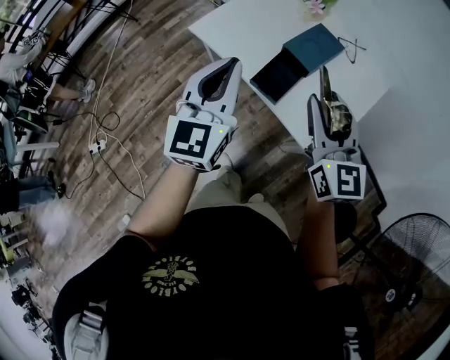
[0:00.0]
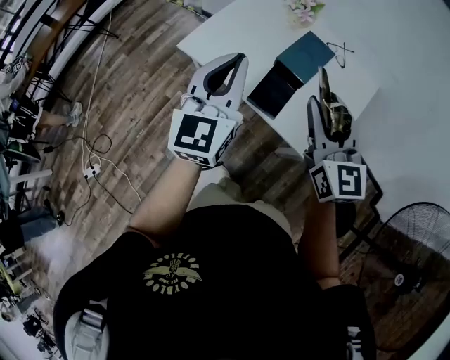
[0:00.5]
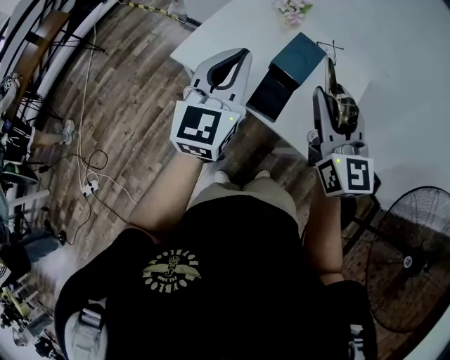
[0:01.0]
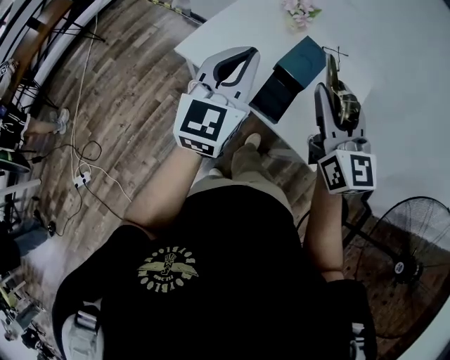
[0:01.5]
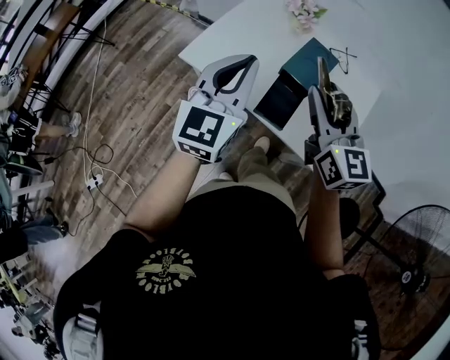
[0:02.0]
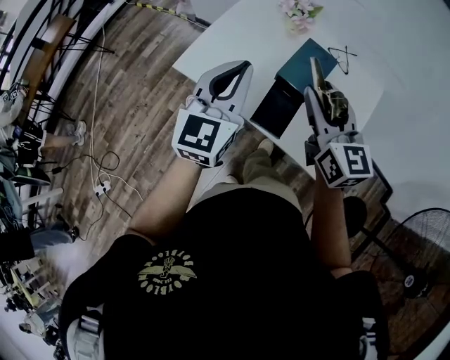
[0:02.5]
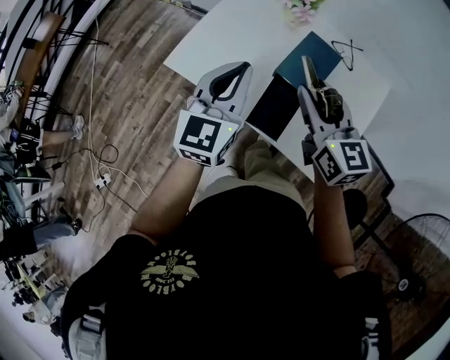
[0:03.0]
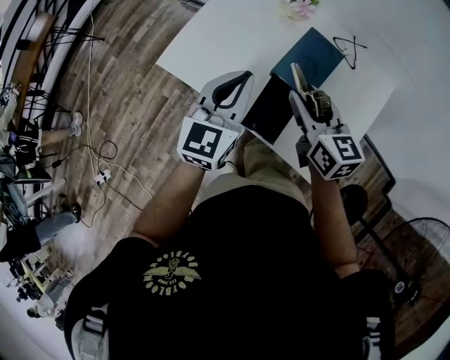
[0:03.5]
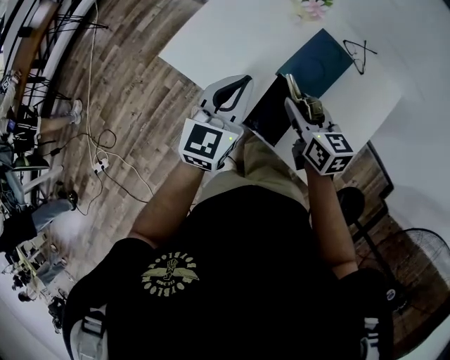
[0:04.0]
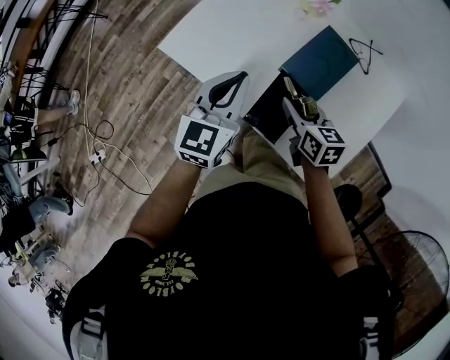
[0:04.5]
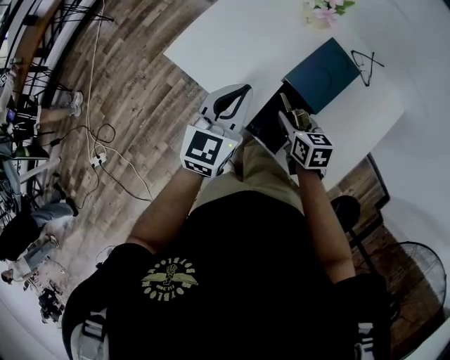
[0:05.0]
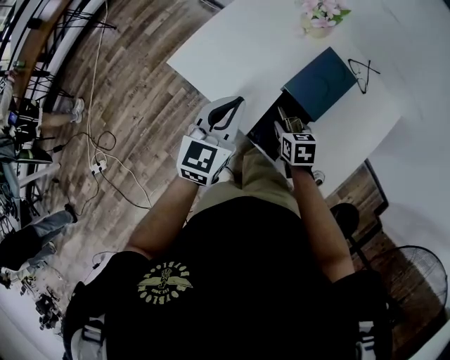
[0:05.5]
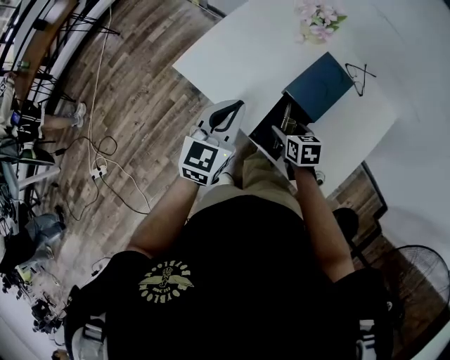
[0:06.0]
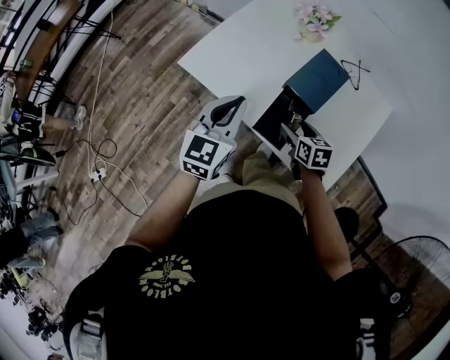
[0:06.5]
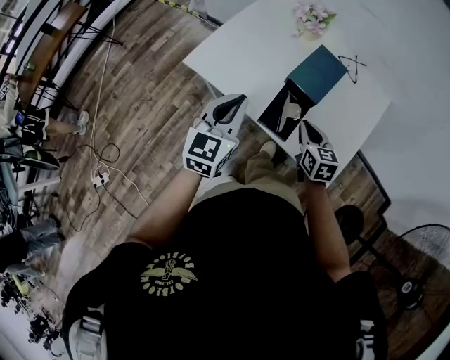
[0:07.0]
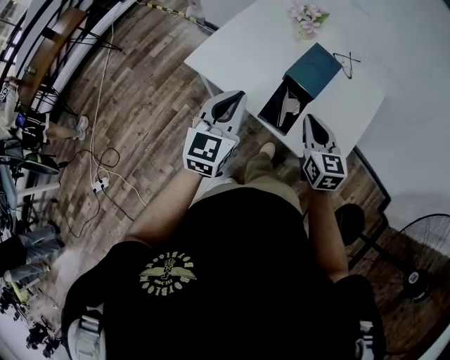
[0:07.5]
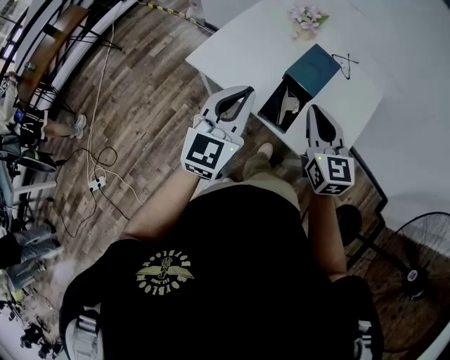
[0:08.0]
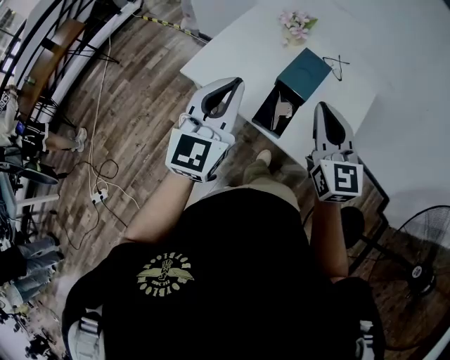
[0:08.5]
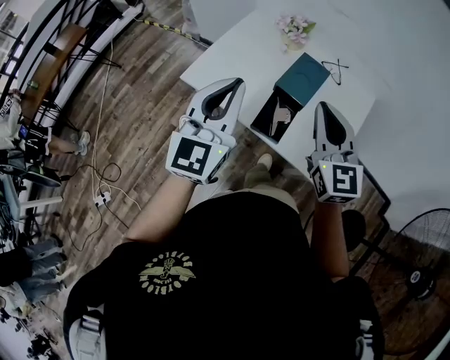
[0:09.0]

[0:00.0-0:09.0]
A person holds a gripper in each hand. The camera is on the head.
0:00.0 to 0:02.0: The left gripper goes roughly 10 cm forward. The right gripper is displaced forward and to the left by approximately 15 cm.
0:02.0 to 0:04.5: Both grippers move downward and forward, some 25 cm. The right gripper tips its fingers downward by roughly 30 degrees.
0:04.5 to 0:07.0: The left gripper is displaced backward and to the left by approximately 10 cm; the right gripper moves backward, approximately 10 cm, moves some 10 cm downward and comes back, and closes its fingers.
0:07.0 to 0:09.0: The right gripper moves upward, approximately 25 cm, and tips its fingers upward by roughly 30 degrees. Meanwhile the left gripper heads upward, covering roughly 15 cm, and turns by about 20 degrees.

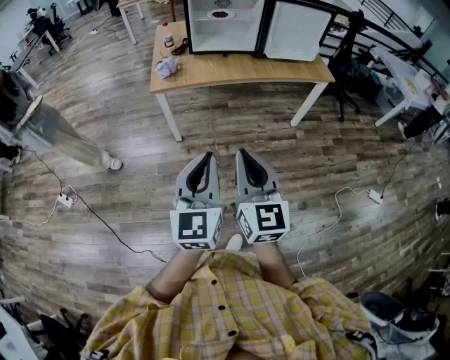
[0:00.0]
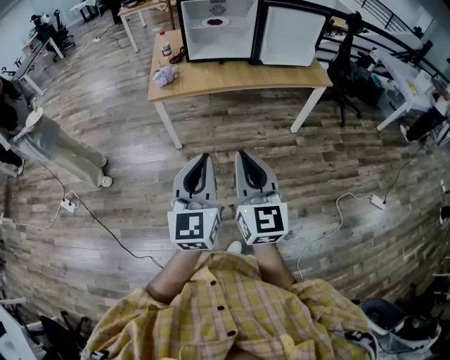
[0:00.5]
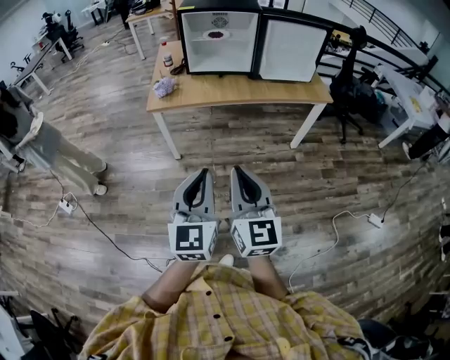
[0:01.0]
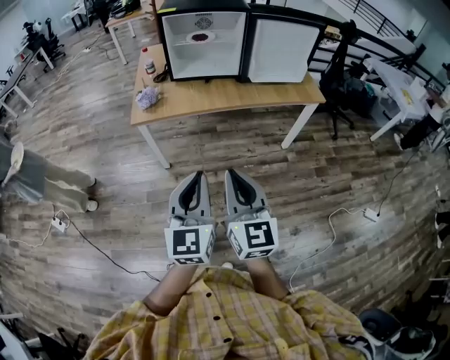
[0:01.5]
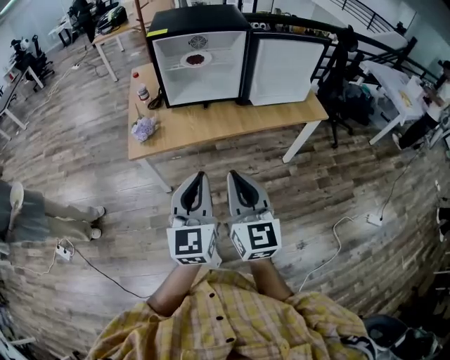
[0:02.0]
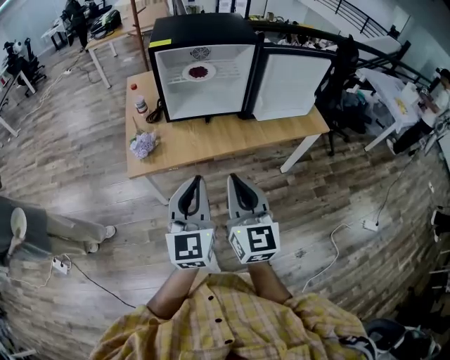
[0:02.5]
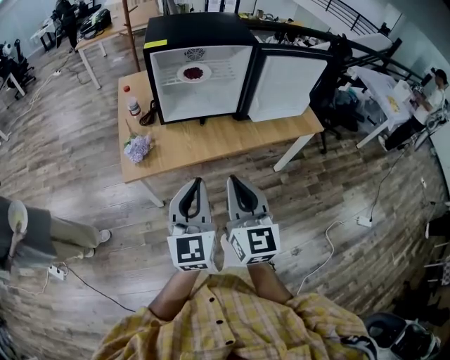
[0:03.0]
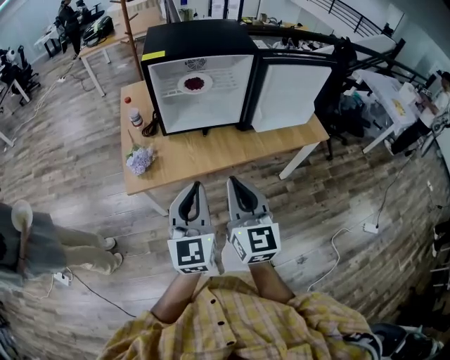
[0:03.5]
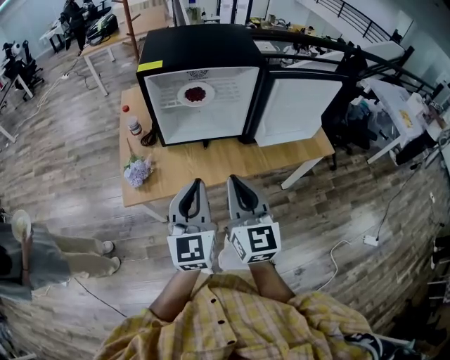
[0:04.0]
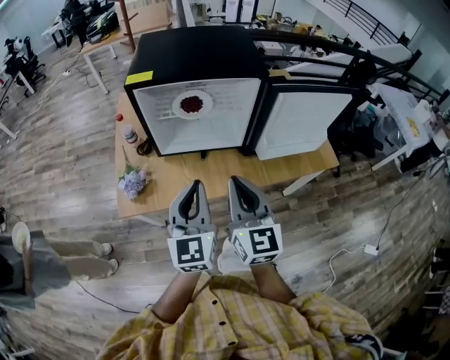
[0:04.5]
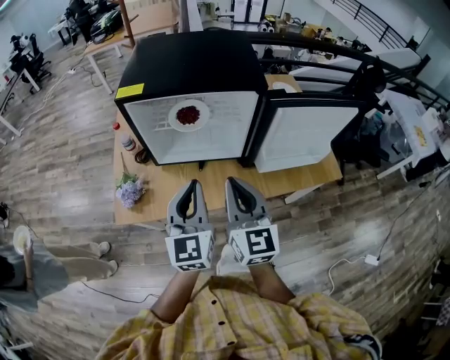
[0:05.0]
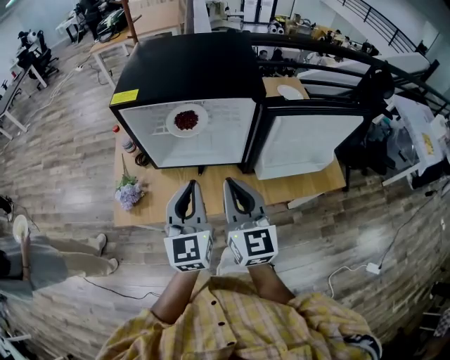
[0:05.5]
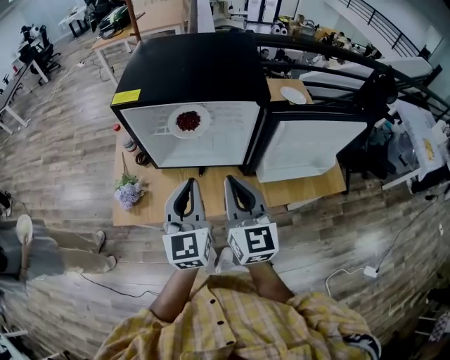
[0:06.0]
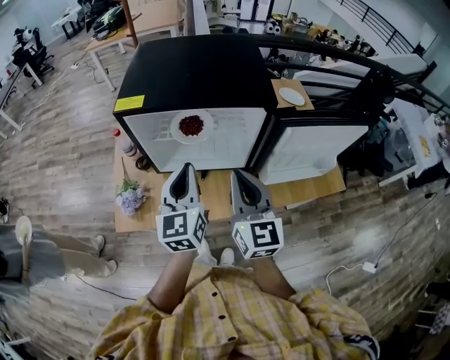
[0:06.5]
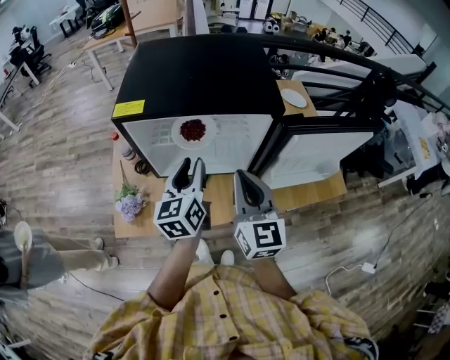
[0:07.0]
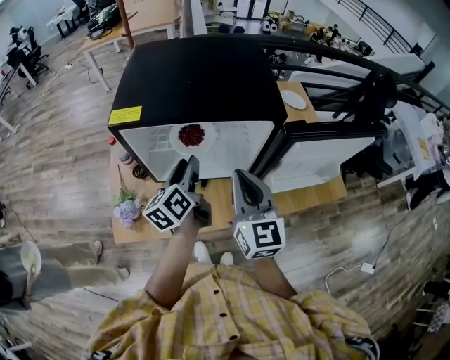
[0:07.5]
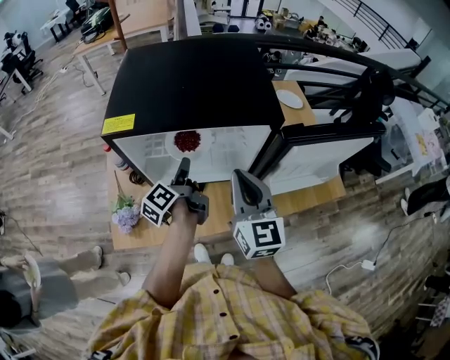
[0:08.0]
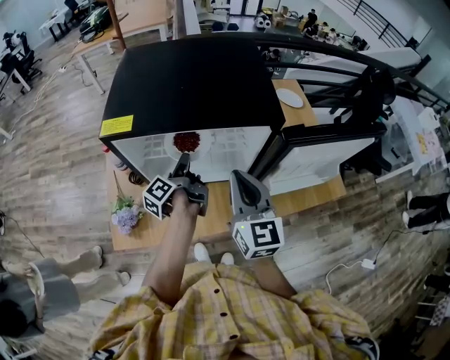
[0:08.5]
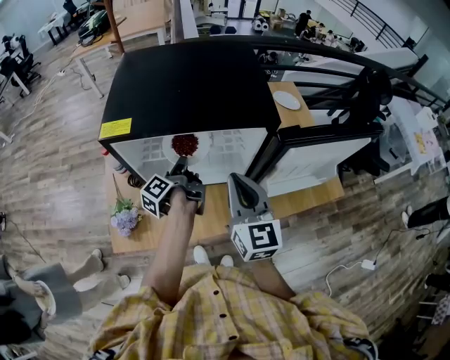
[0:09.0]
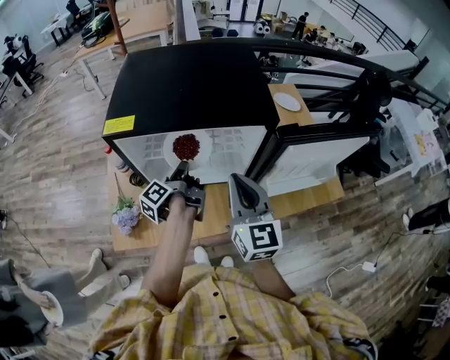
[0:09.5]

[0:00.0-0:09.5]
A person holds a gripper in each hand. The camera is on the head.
0:00.0 to 0:02.0: Both grippers travel together forward, some 25 cm.
0:02.0 to 0:04.0: The grippers both shift forward by roughly 20 cm.
0:04.0 to 0:05.5: Both grippers move forward and to the right, some 15 cm.
0:05.5 to 0:07.5: The right gripper heads forward, covering about 10 cm. The left gripper moves forward and downward, approximately 20 cm, twists approximately 50 degrees counterclockwise, seen from behind, and opens.
0:07.5 to 0:09.5: The left gripper shifts roughly 5 cm downward, rolls counterclockwise, seen from behind, by roughly 40 degrees, and closes up.

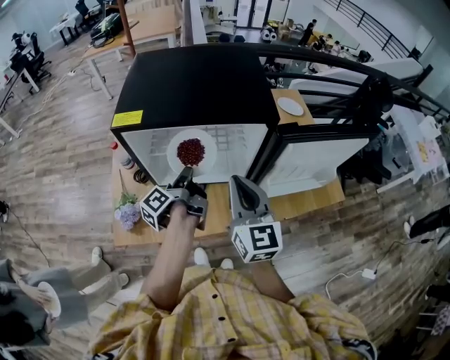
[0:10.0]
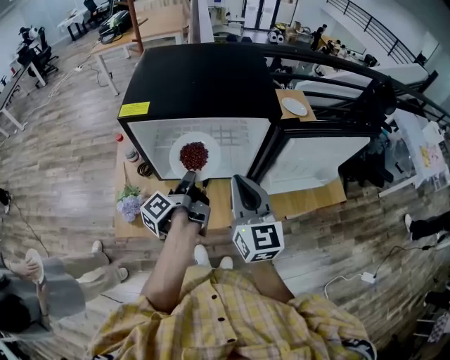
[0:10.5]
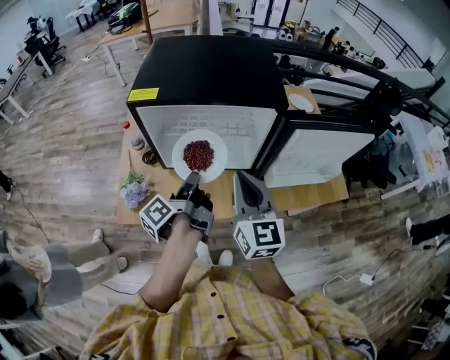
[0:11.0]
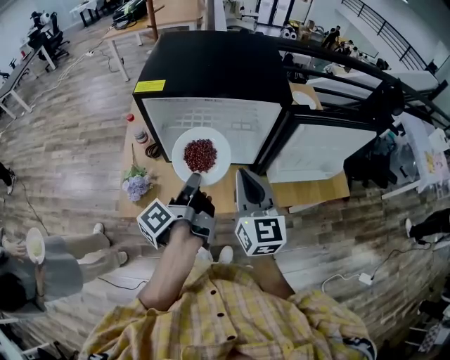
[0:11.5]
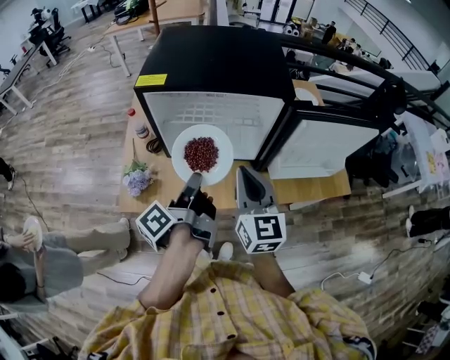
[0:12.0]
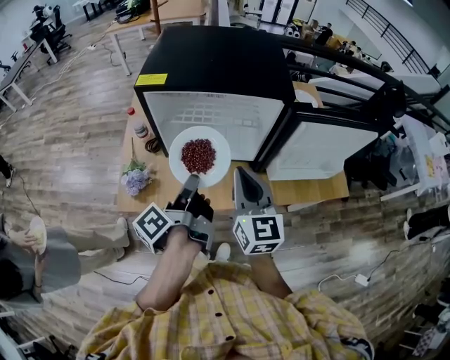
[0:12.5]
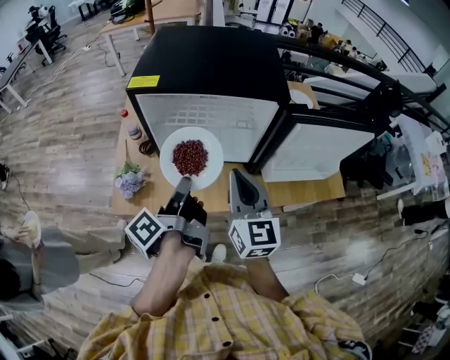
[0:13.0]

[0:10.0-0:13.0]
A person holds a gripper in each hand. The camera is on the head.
0:10.0 to 0:11.5: The left gripper shifts roughly 15 cm backward and upward, while the right gripper moves backward, some 5 cm.
0:11.5 to 0:13.0: The grippers move only a little.

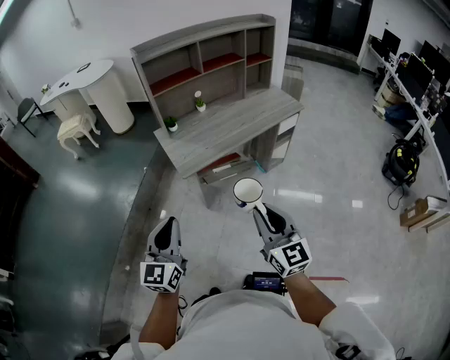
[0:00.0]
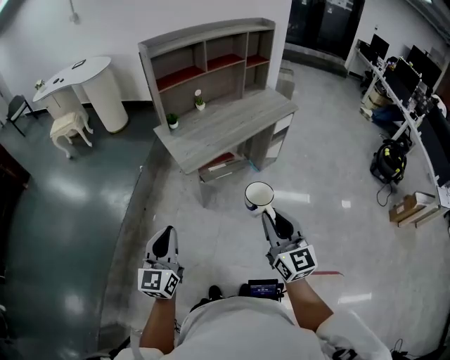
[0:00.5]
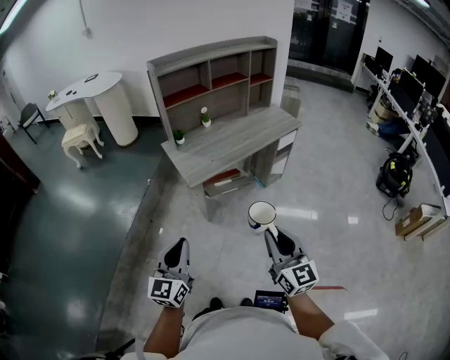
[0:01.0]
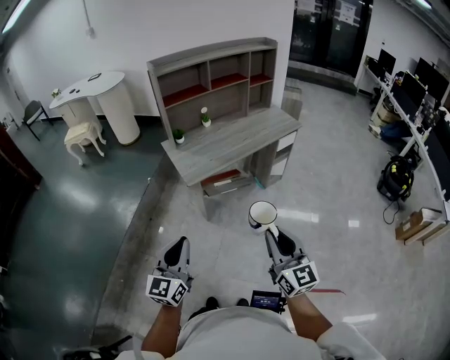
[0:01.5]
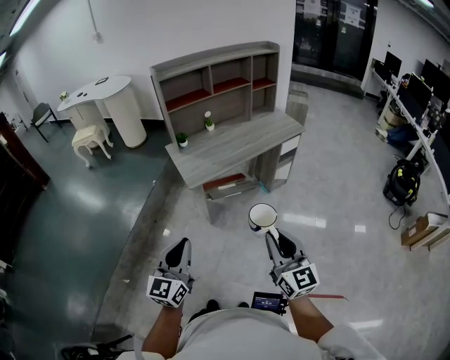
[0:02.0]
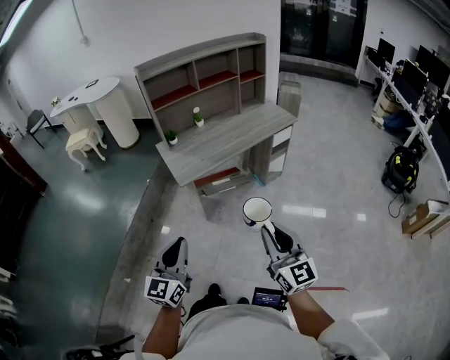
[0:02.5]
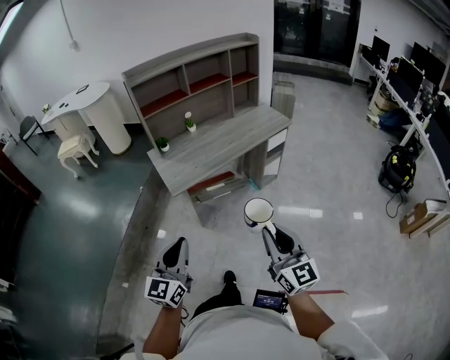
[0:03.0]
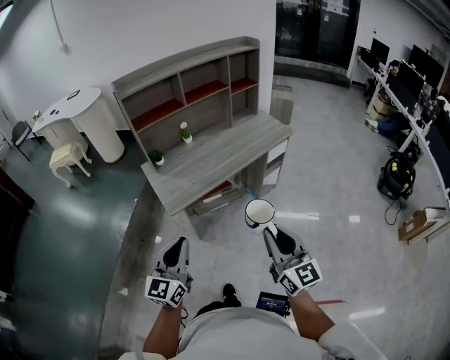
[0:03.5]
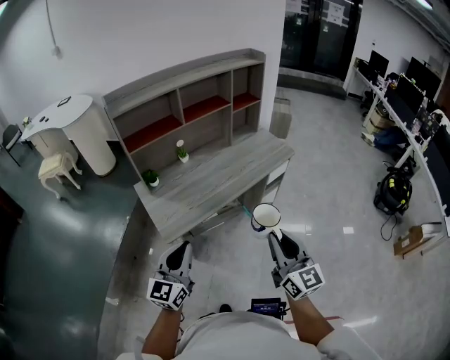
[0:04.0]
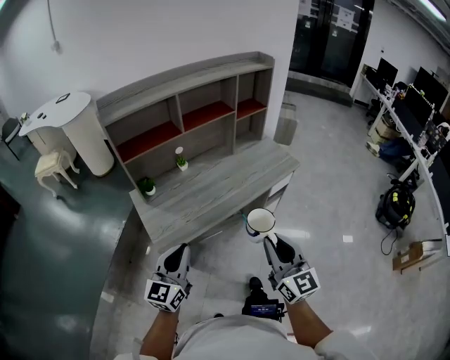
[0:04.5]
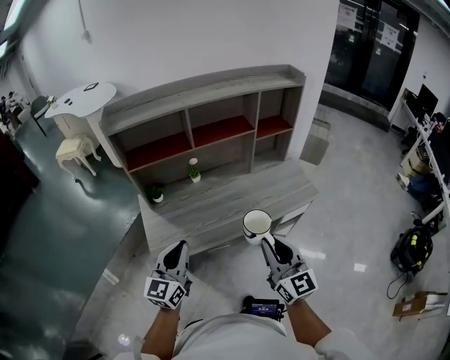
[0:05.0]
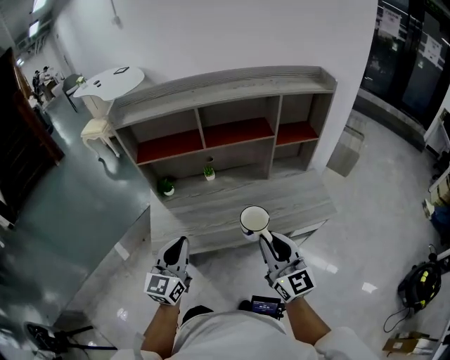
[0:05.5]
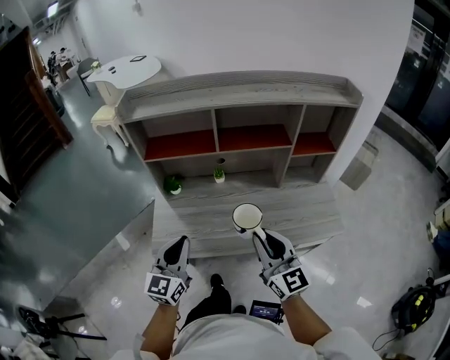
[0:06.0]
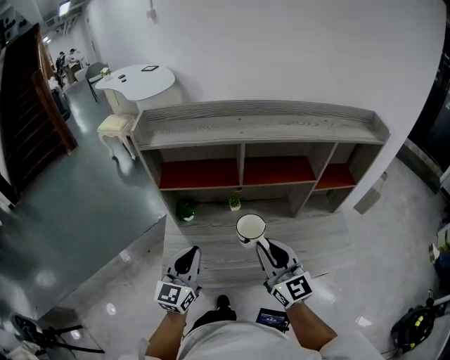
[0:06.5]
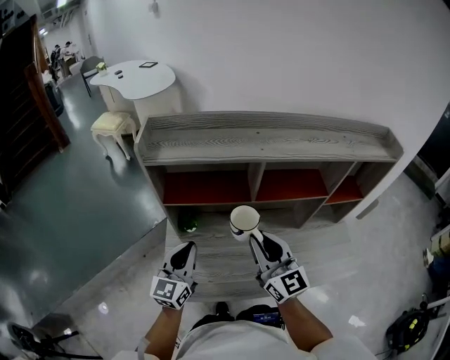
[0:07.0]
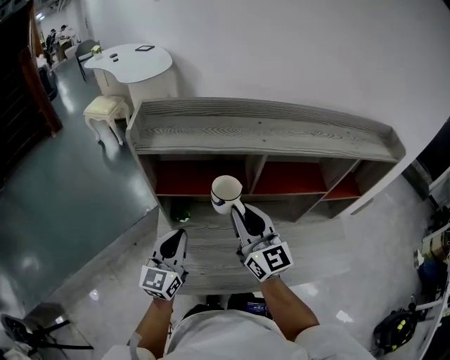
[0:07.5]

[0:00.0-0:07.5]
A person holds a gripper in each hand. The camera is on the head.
0:00.0 to 0:02.0: The two grippers go about 10 cm backward. The left gripper goes to the left and returns, approximately 10 cm each way.
0:02.0 to 0:04.0: The grippers both shift forward by about 30 cm.
0:04.0 to 0:05.5: The left gripper shifts by approximately 25 cm, and changes its angle by approximately 30 degrees; the right gripper shifts by some 30 cm, and swivels roughly 30 degrees.
0:05.5 to 0:07.5: The two grippers go roughly 30 cm forward and to the left.
